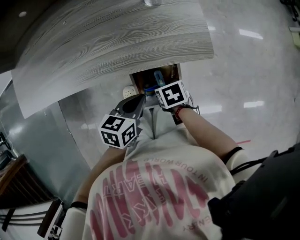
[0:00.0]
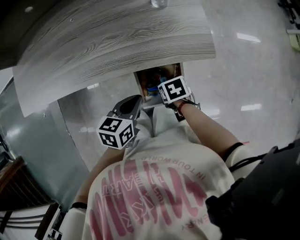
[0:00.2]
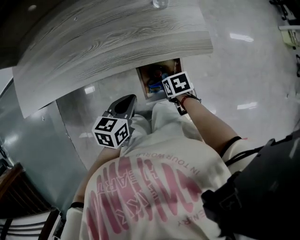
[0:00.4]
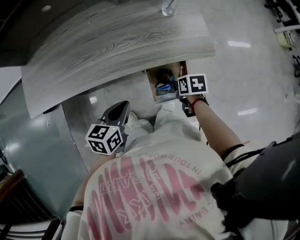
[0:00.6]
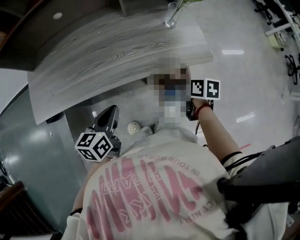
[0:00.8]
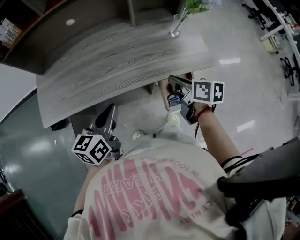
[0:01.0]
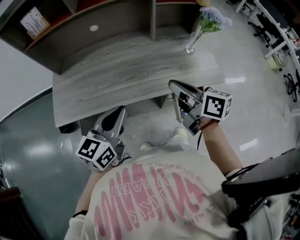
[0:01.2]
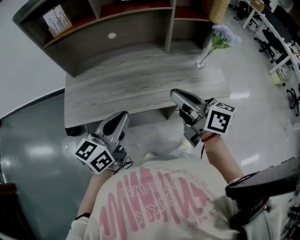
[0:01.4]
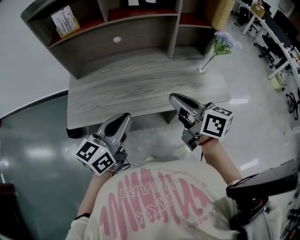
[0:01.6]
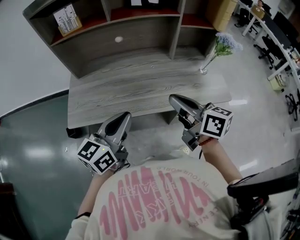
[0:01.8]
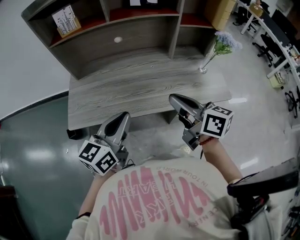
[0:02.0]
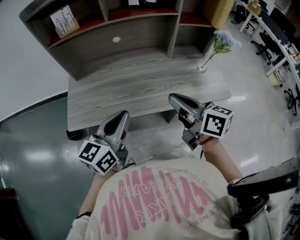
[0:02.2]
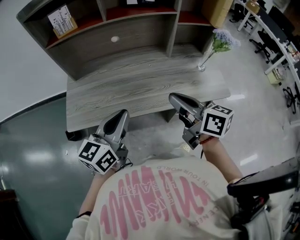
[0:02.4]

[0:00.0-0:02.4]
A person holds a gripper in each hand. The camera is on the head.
0:00.0 to 0:01.2: The left gripper travels to the left and upward by roughly 40 cm, and angles its fingers upward, by about 30 degrees. Meanwhile the right gripper heads upward and to the left, covering approximately 40 cm, angles its fingers upward, by approximately 60 degrees, and closes up.
0:01.2 to 0:02.4: The right gripper is displaced to the left and upward by approximately 10 cm. The left gripper moves to the left, some 5 cm.

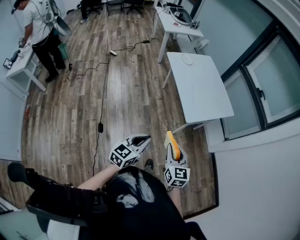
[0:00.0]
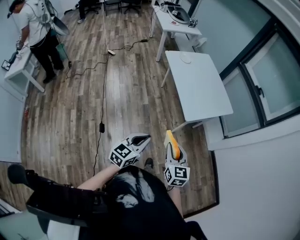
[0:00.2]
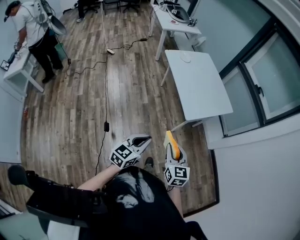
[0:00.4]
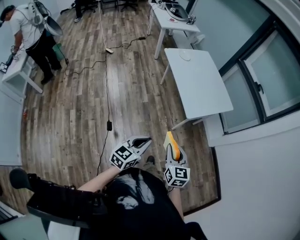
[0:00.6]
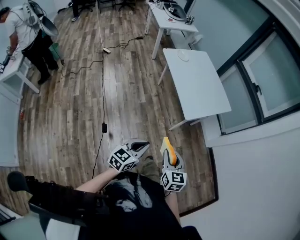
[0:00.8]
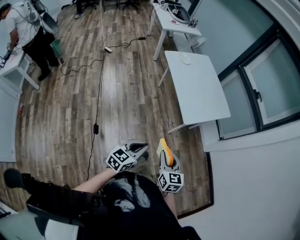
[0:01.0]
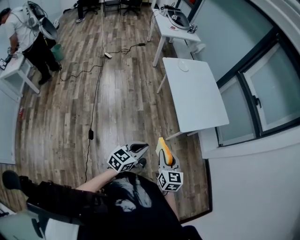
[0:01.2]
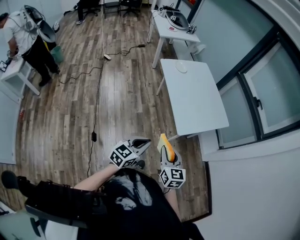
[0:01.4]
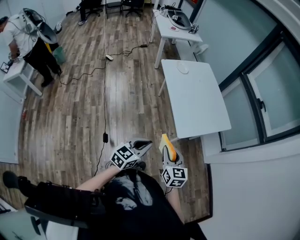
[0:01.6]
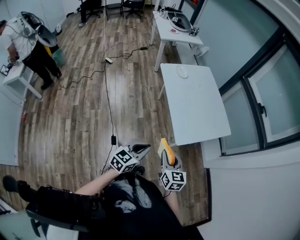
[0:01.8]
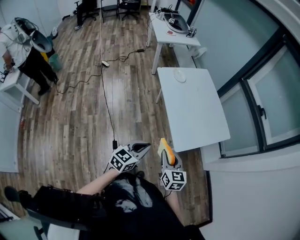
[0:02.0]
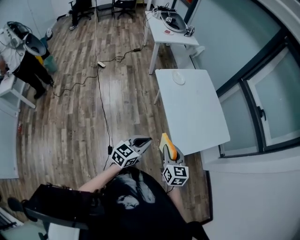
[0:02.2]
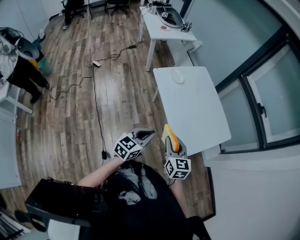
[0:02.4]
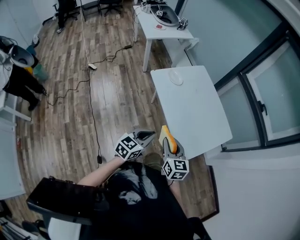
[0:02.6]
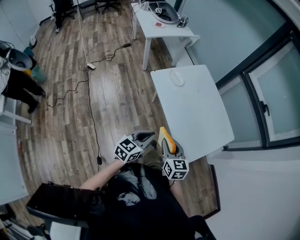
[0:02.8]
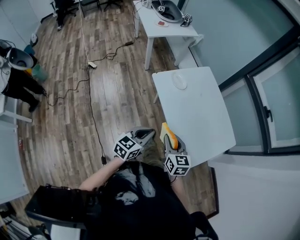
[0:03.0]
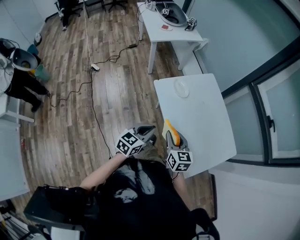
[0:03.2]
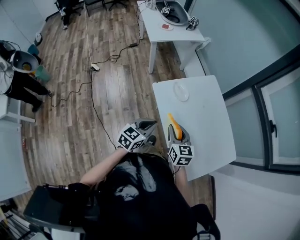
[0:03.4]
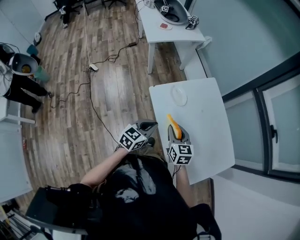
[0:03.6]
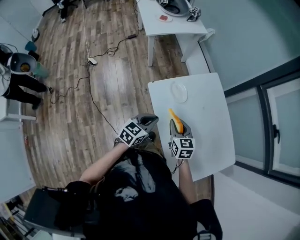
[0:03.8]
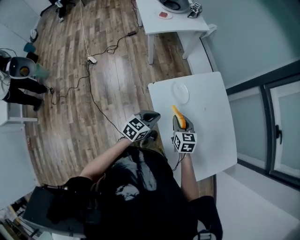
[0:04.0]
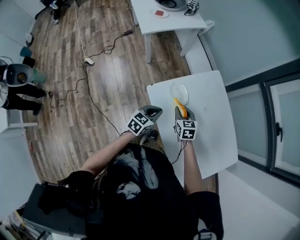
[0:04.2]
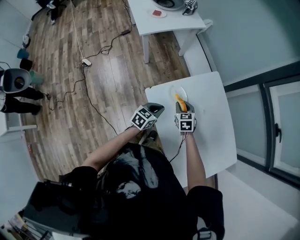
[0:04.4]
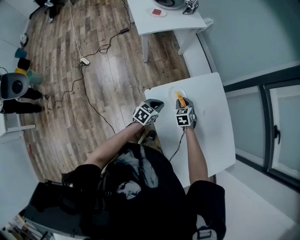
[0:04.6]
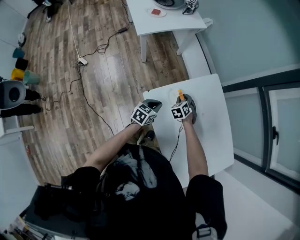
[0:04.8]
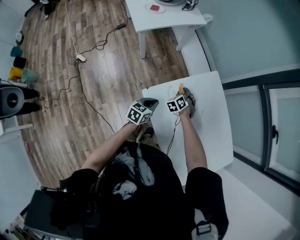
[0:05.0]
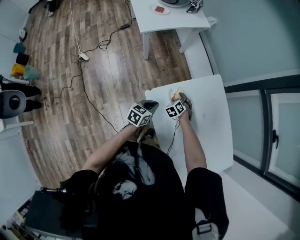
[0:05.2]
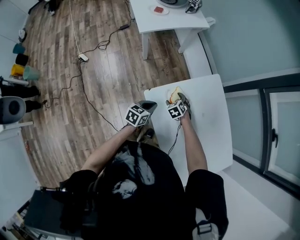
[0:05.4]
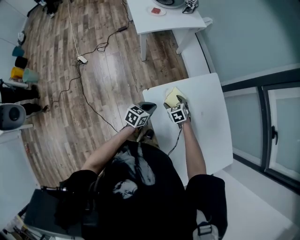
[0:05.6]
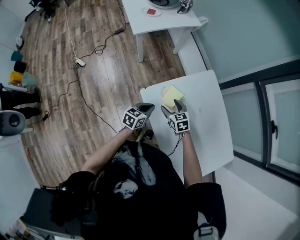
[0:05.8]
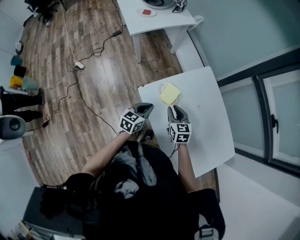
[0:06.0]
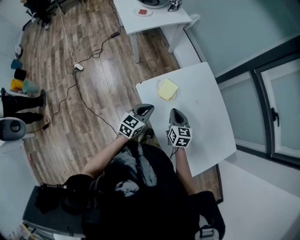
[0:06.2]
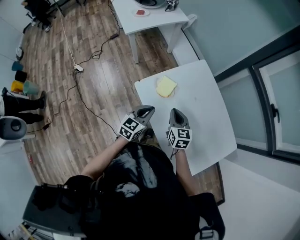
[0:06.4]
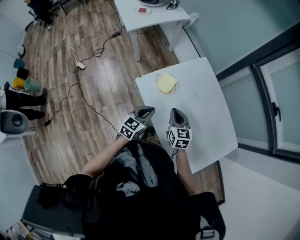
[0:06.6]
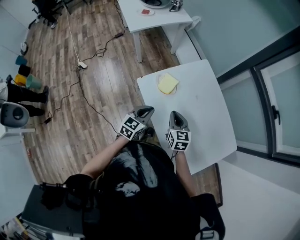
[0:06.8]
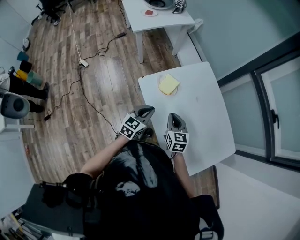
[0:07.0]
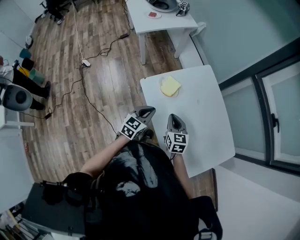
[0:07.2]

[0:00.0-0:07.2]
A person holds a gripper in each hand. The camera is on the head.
0:00.0 to 0:01.4: Both grippers move forward, some 10 cm.
0:01.4 to 0:02.8: The left gripper travels forward by approximately 35 cm. Meanwhile the right gripper goes some 35 cm forward and to the left.
0:02.8 to 0:04.4: Both grippers are carried forward, approximately 40 cm. The right gripper swivels about 20 degrees.
0:04.4 to 0:05.8: The right gripper reaches about 10 cm downward, then returns, and opens.
0:05.8 to 0:07.2: The left gripper heads backward, upward and to the right, covering some 15 cm; the right gripper goes approximately 20 cm backward, to the right and upward, turns by some 20 degrees, and closes up.

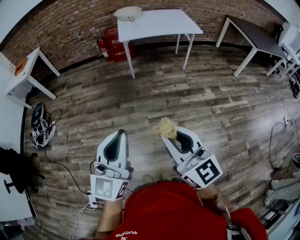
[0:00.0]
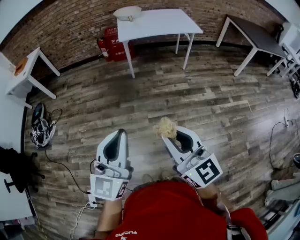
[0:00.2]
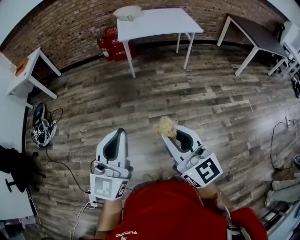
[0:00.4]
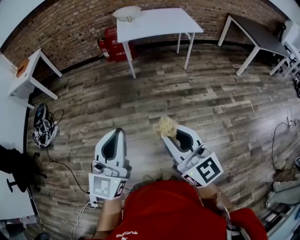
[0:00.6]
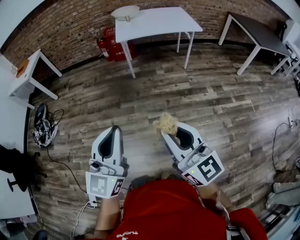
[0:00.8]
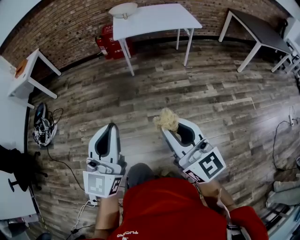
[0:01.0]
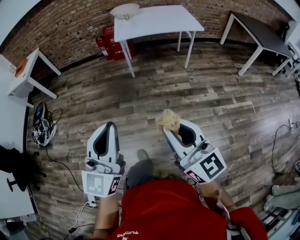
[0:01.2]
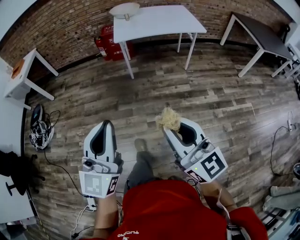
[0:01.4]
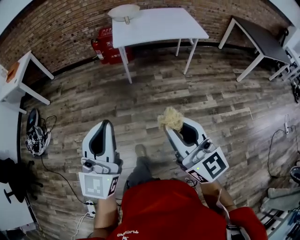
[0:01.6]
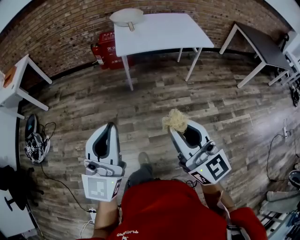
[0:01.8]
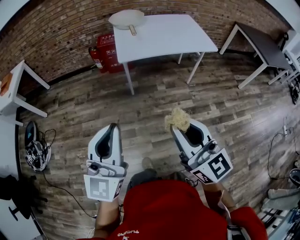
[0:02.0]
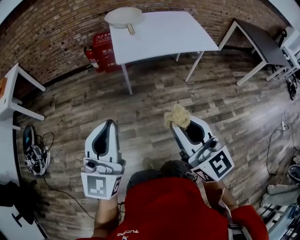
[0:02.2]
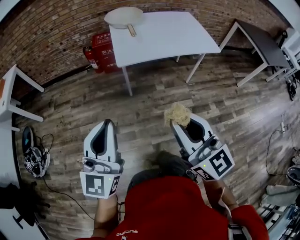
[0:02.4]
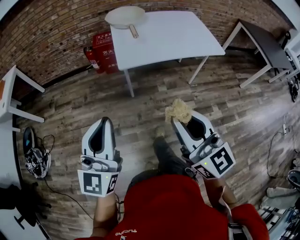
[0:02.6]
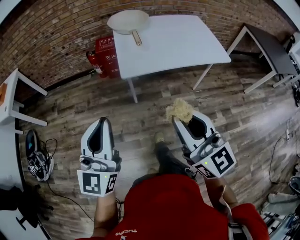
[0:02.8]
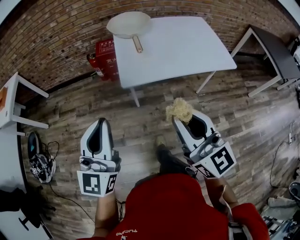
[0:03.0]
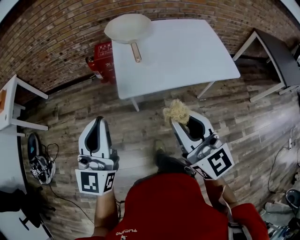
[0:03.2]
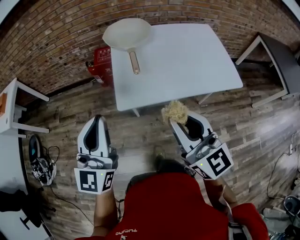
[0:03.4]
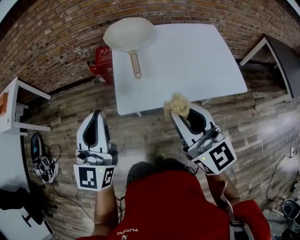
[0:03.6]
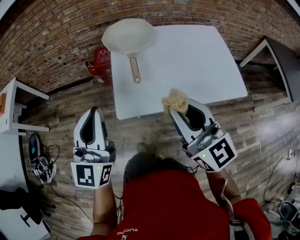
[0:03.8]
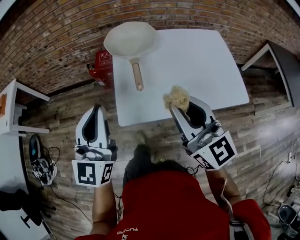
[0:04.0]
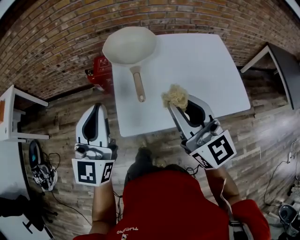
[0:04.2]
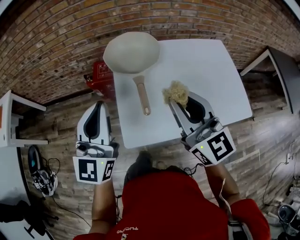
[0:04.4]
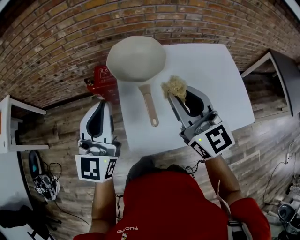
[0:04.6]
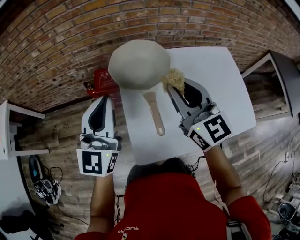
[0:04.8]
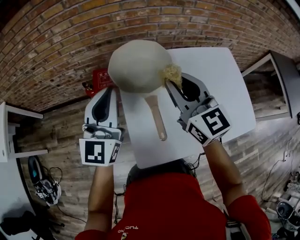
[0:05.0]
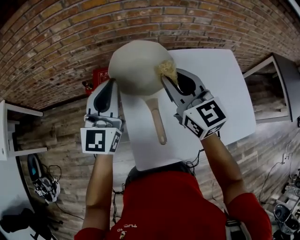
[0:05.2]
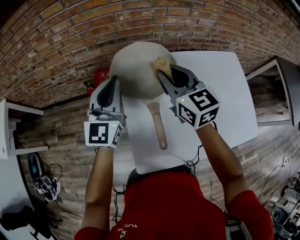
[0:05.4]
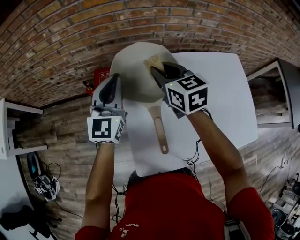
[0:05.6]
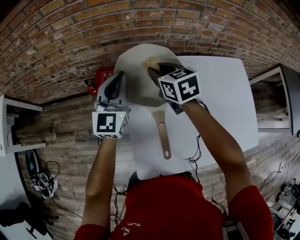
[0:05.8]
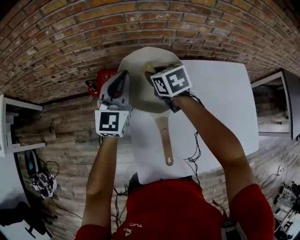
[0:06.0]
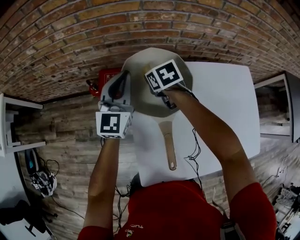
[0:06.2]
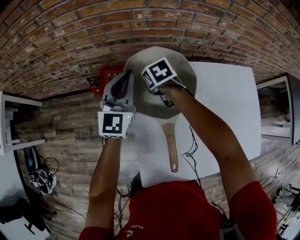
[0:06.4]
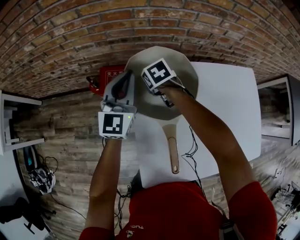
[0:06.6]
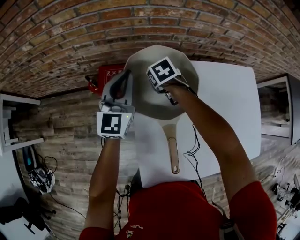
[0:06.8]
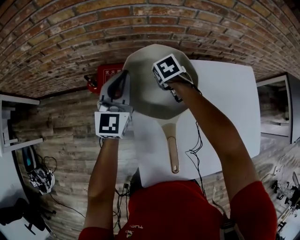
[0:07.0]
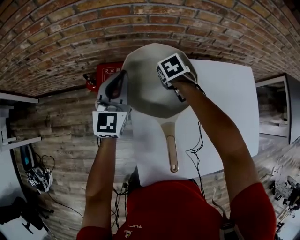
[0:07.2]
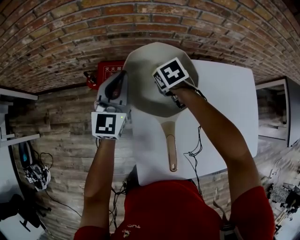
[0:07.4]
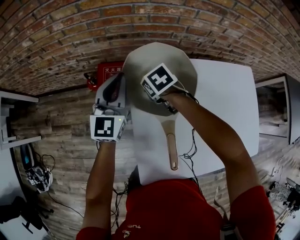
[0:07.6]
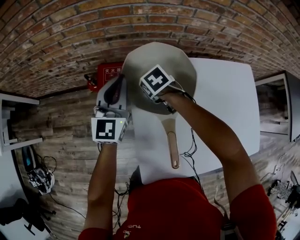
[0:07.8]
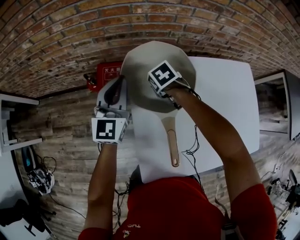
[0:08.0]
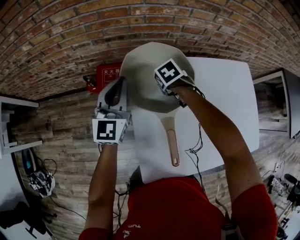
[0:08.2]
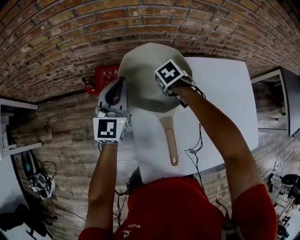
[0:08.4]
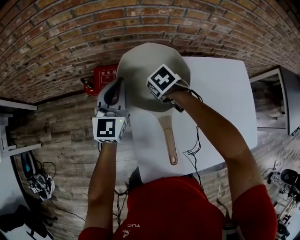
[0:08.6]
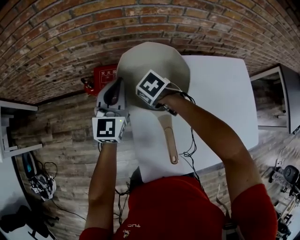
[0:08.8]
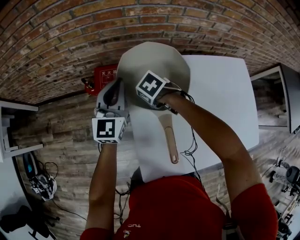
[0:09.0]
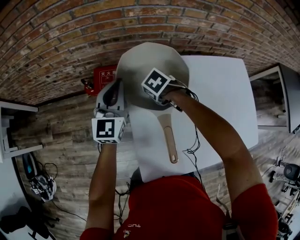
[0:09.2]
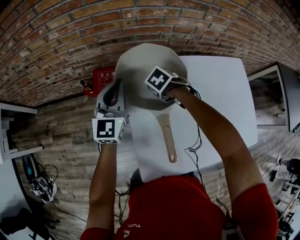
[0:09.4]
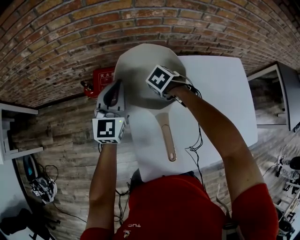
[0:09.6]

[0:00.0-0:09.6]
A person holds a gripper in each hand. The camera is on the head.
0:00.0 to 0:01.6: The grippers both shift forward by roughly 20 cm.
0:01.6 to 0:03.2: The two grippers travel together, forward, approximately 50 cm.
0:03.2 to 0:04.8: Both grippers are carried forward, roughly 40 cm.
0:04.8 to 0:06.4: Both grippers move forward and downward, about 35 cm. The right gripper tilts its fingers about 60 degrees downward.
0:06.4 to 0:08.0: The right gripper moves approximately 5 cm.
0:08.0 to 0:09.6: The right gripper ends up roughly 5 cm from where it was.

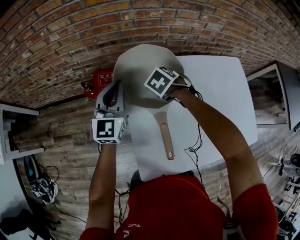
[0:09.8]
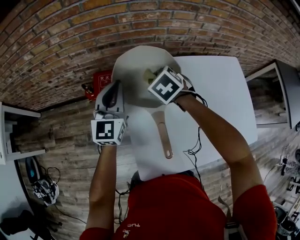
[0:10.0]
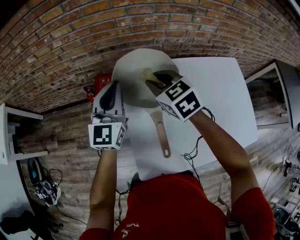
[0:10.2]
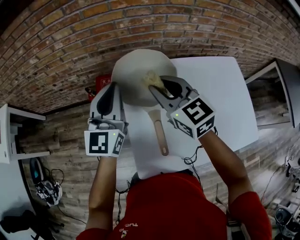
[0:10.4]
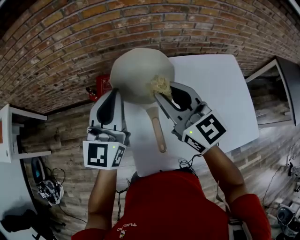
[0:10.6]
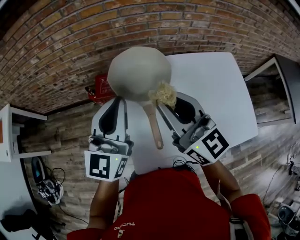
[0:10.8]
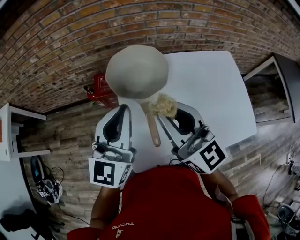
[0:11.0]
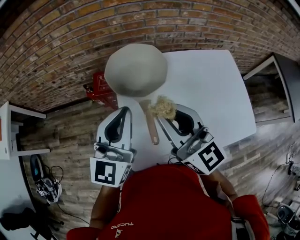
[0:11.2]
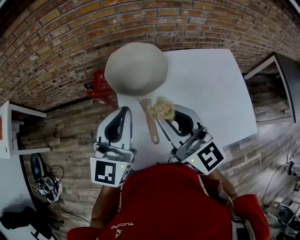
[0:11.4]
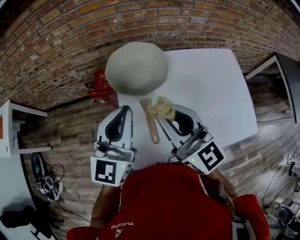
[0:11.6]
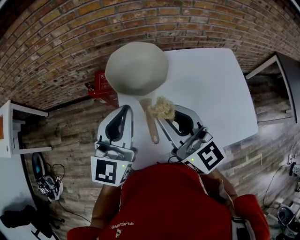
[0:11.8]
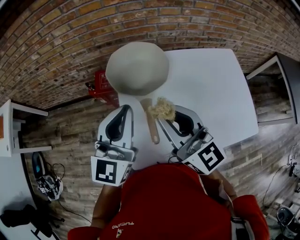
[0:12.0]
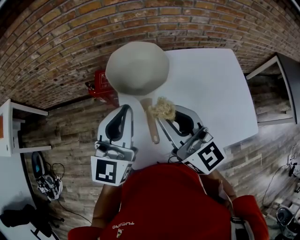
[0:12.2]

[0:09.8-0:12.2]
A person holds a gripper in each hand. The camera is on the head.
0:09.8 to 0:11.0: The left gripper shifts by roughly 25 cm, while the right gripper moves upward, approximately 30 cm, and tilts its fingers approximately 80 degrees upward.
0:11.0 to 0:12.2: The grippers move only a little.

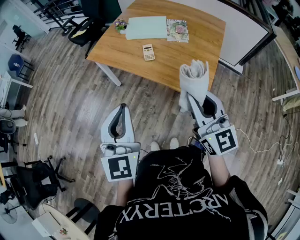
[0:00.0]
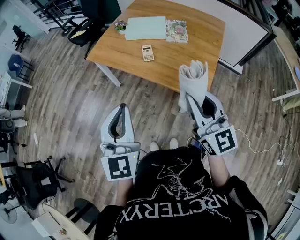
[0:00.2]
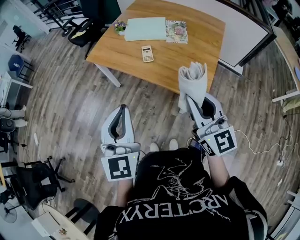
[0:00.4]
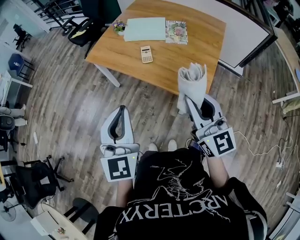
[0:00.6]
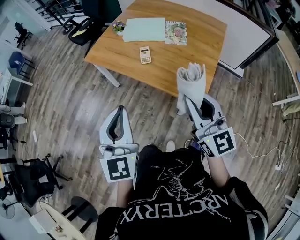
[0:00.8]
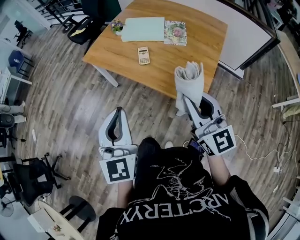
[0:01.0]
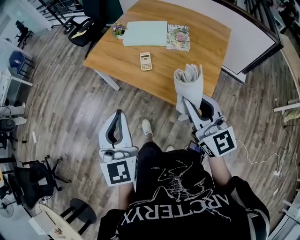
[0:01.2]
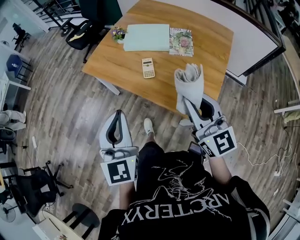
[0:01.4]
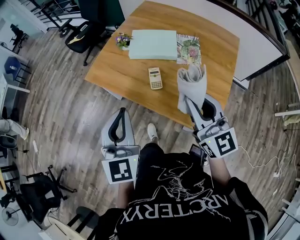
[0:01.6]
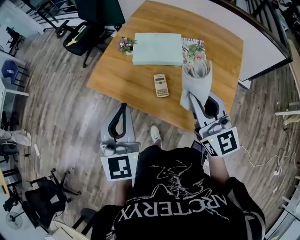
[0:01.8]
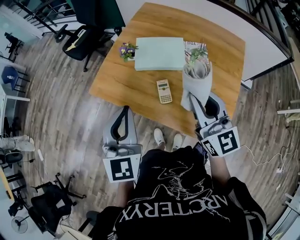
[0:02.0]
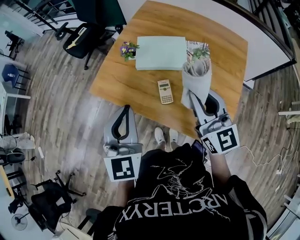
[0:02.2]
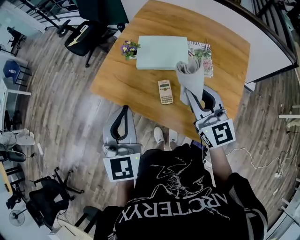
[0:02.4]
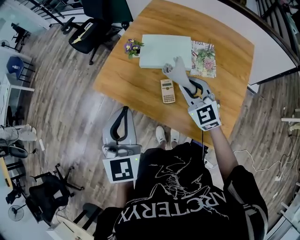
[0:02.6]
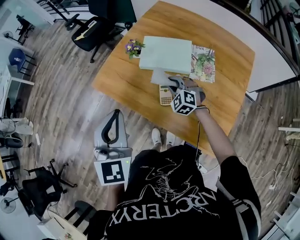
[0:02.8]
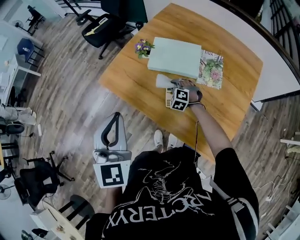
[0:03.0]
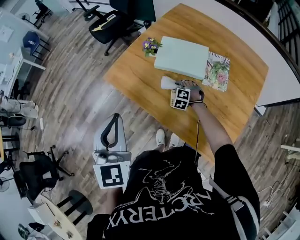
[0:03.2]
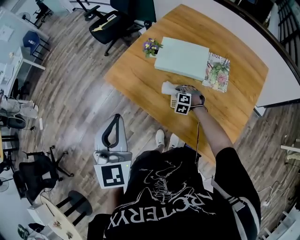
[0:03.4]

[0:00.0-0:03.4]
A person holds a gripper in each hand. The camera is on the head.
0:00.0 to 0:01.6: Both grippers travel together forward, some 25 cm.
0:01.6 to 0:03.4: The right gripper goes about 50 cm downward and forward, and angles its fingers downward, by about 60 degrees. The left gripper moves forward and to the left, approximately 10 cm.
